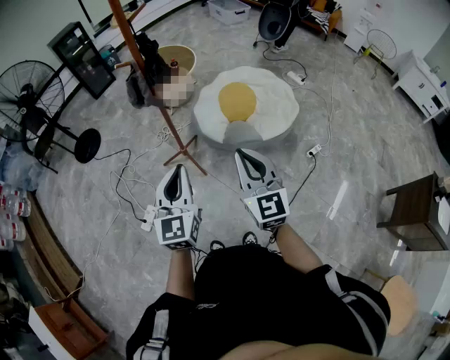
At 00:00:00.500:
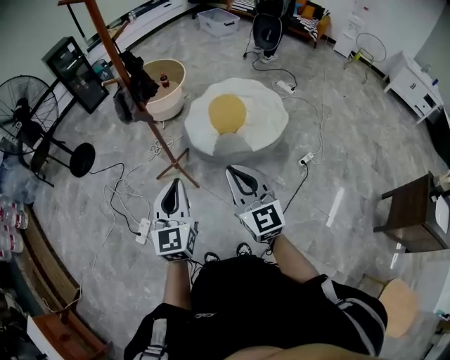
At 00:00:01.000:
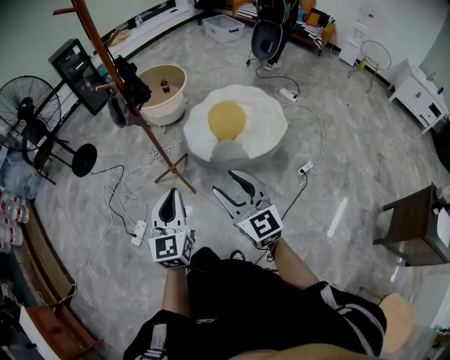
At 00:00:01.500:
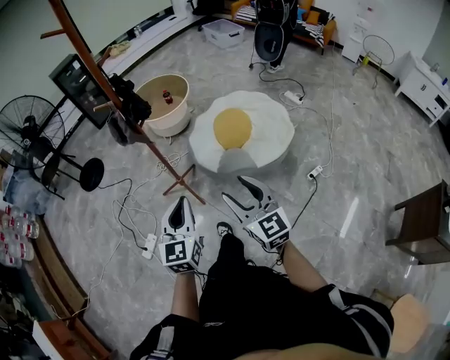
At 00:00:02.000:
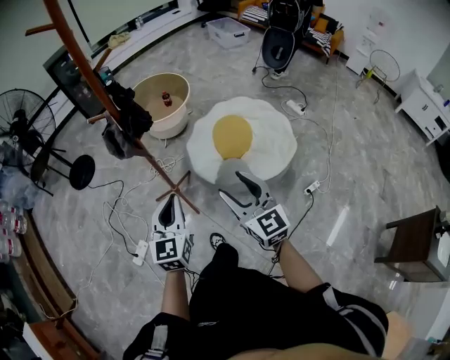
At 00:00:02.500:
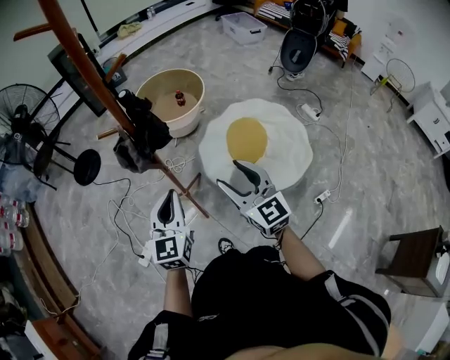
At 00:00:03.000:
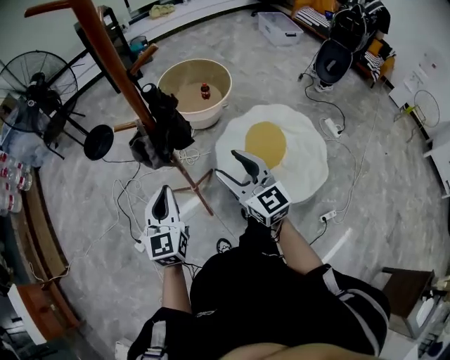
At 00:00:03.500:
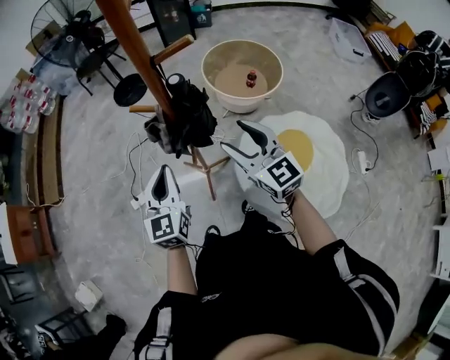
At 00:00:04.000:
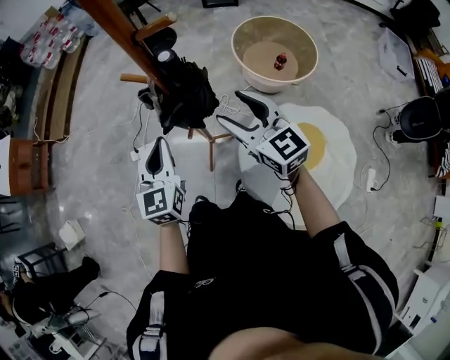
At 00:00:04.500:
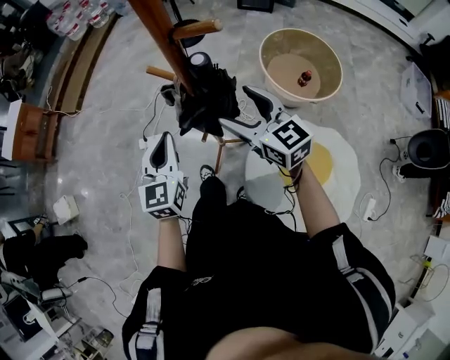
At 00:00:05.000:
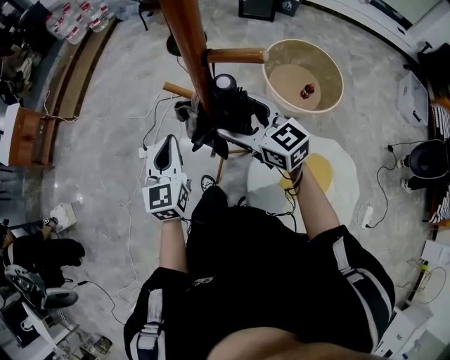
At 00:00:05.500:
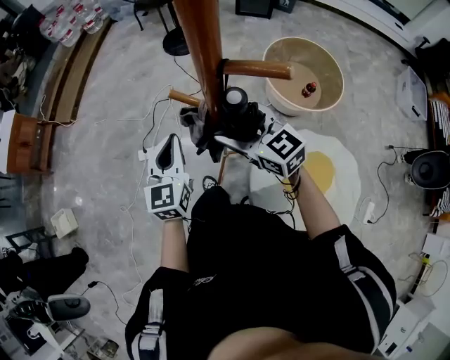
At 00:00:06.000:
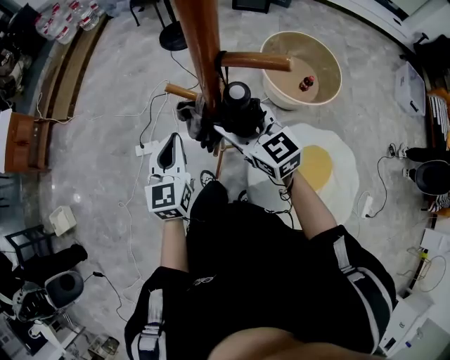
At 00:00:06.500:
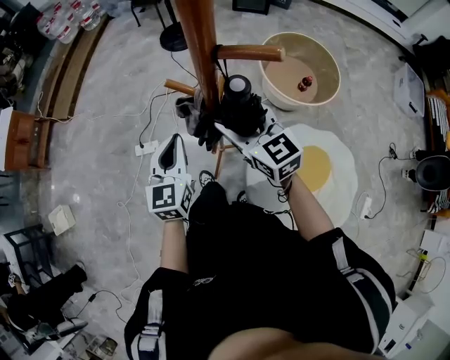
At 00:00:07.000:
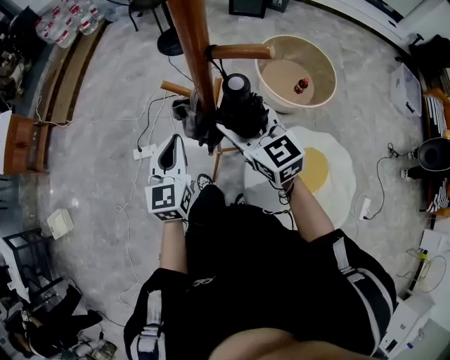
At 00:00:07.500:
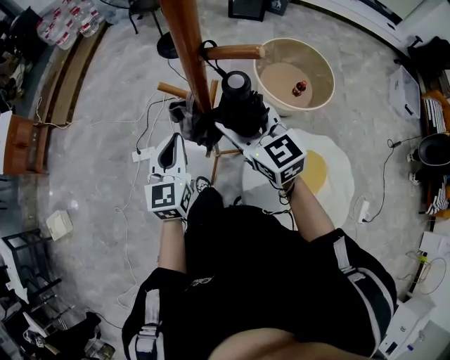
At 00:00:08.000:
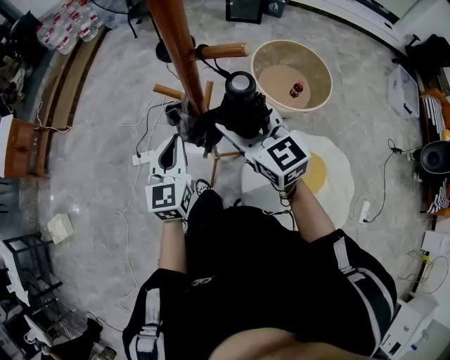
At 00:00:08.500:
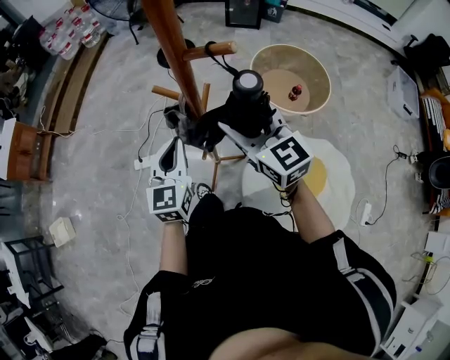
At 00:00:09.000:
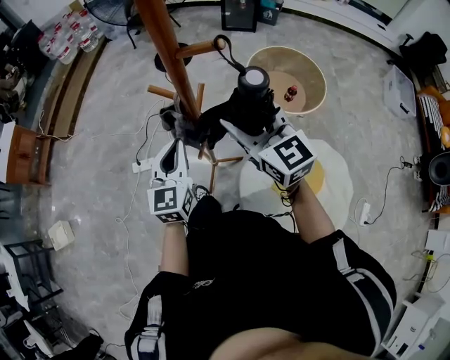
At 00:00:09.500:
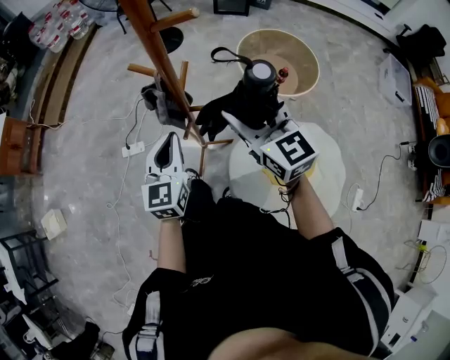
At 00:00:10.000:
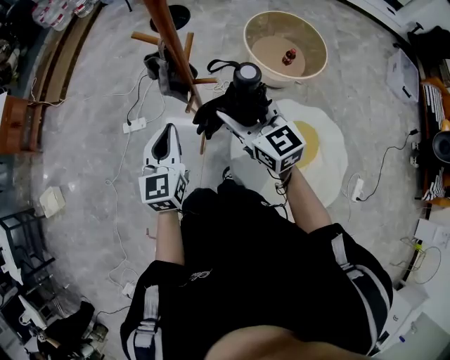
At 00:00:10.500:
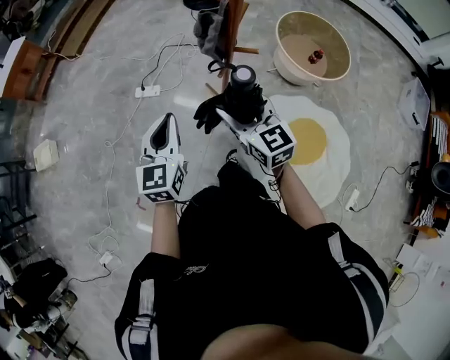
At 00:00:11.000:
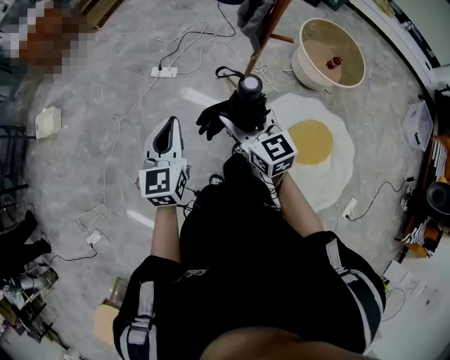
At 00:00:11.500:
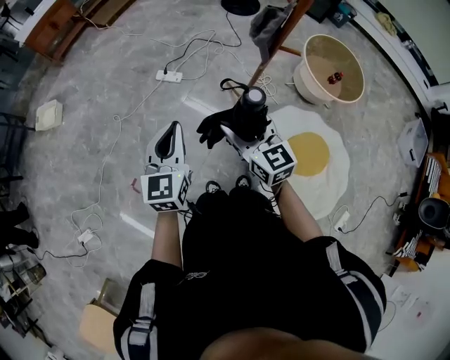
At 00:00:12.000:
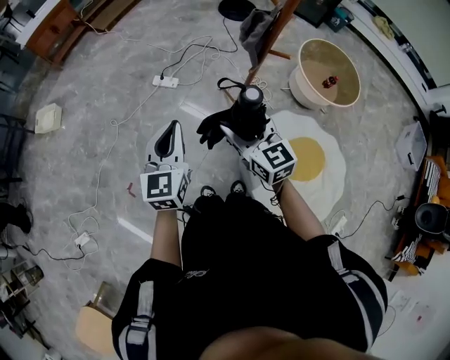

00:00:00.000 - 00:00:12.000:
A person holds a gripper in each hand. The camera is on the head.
00:00:00.000 - 00:00:02.000: Both grippers move forward and to the right, some 15 cm. The right gripper opens up.
00:00:02.000 - 00:00:04.000: The left gripper ends up approximately 25 cm from where it was, and swivels roughly 50 degrees; the right gripper ends up some 40 cm from where it was, and rotates roughly 60 degrees.
00:00:04.000 - 00:00:06.000: The left gripper heads forward, covering about 10 cm. The right gripper heads forward and to the left, covering approximately 15 cm.
00:00:06.000 - 00:00:08.000: The right gripper goes some 5 cm upward.
00:00:08.000 - 00:00:10.000: The left gripper is displaced backward by roughly 10 cm. The right gripper is displaced backward and downward by approximately 10 cm.
00:00:10.000 - 00:00:12.000: Both grippers travel together to the left and backward, about 25 cm.

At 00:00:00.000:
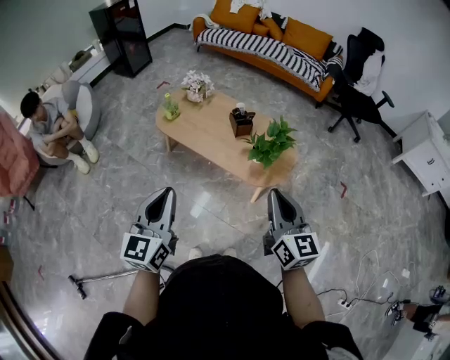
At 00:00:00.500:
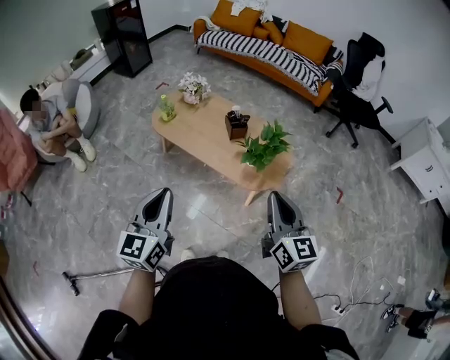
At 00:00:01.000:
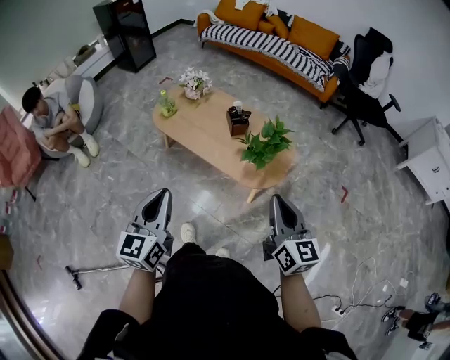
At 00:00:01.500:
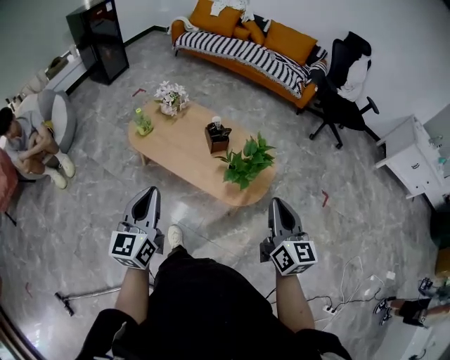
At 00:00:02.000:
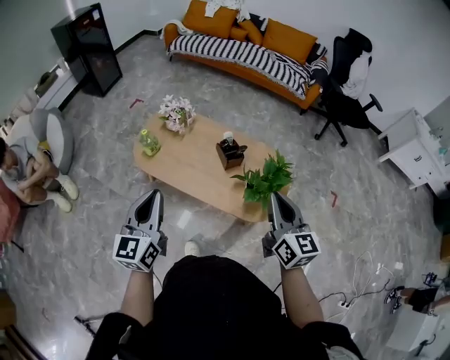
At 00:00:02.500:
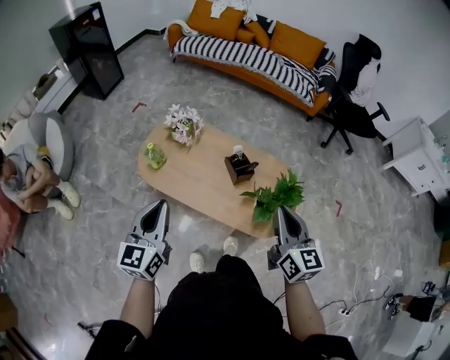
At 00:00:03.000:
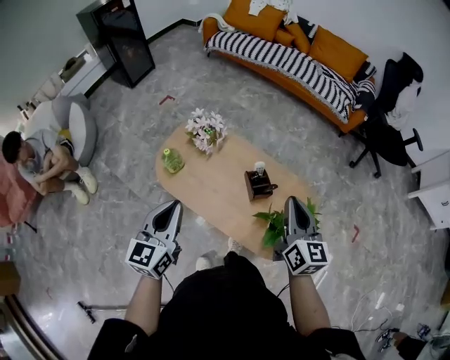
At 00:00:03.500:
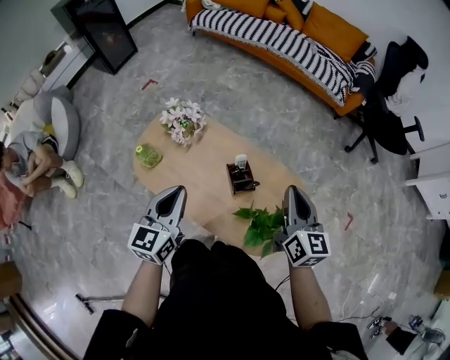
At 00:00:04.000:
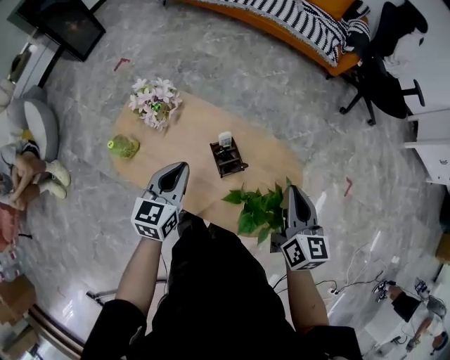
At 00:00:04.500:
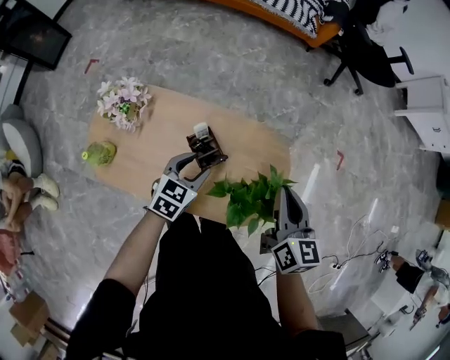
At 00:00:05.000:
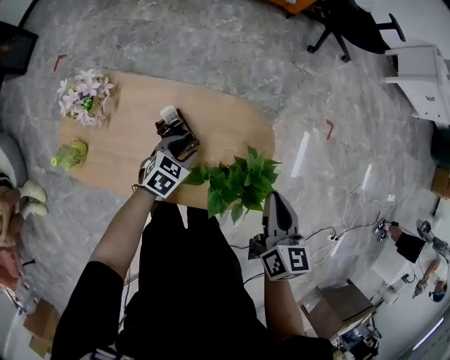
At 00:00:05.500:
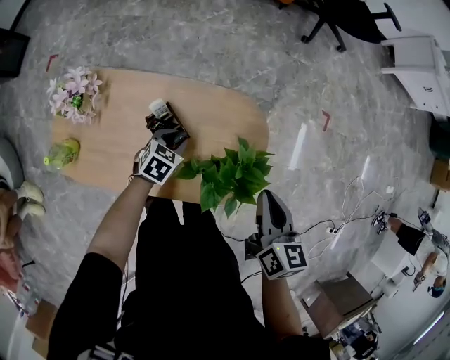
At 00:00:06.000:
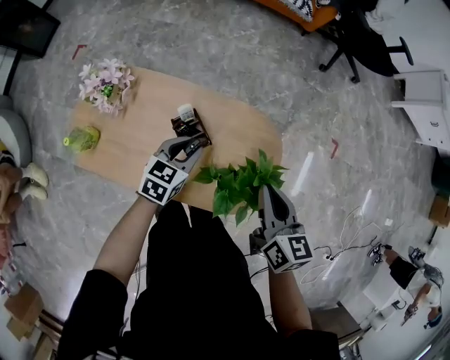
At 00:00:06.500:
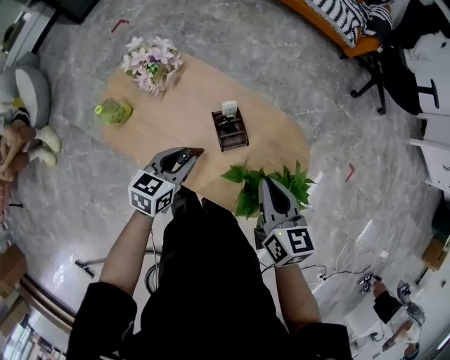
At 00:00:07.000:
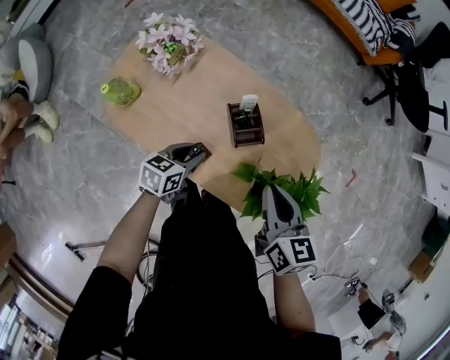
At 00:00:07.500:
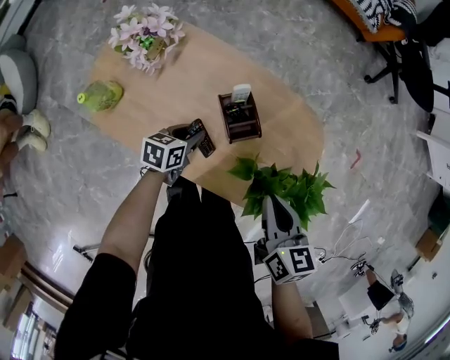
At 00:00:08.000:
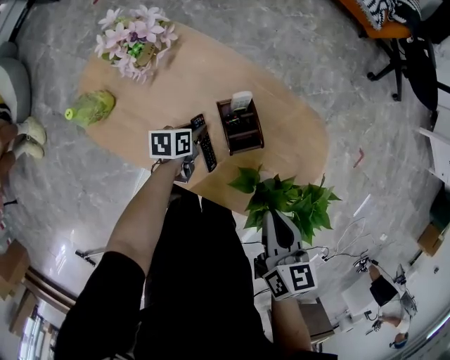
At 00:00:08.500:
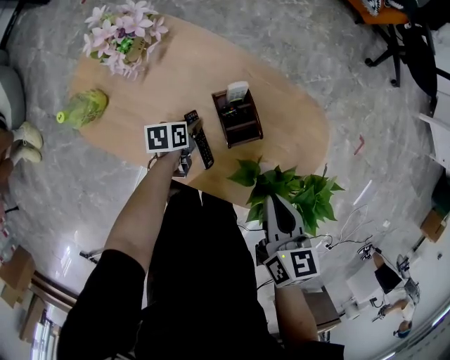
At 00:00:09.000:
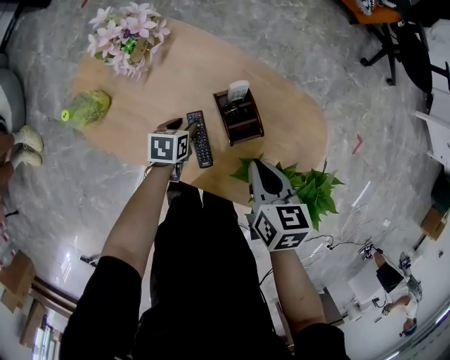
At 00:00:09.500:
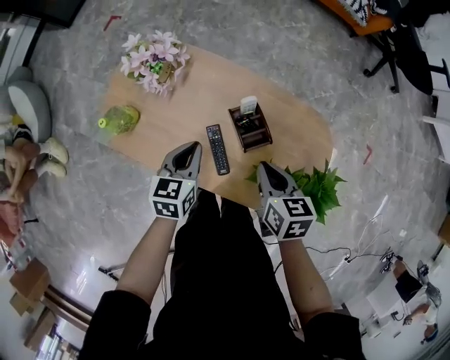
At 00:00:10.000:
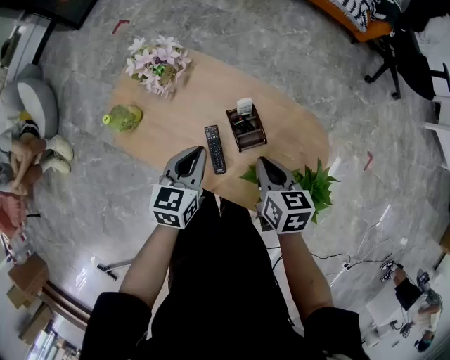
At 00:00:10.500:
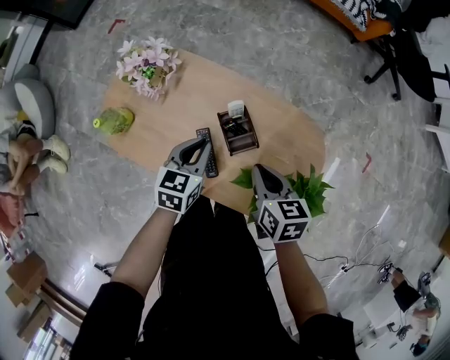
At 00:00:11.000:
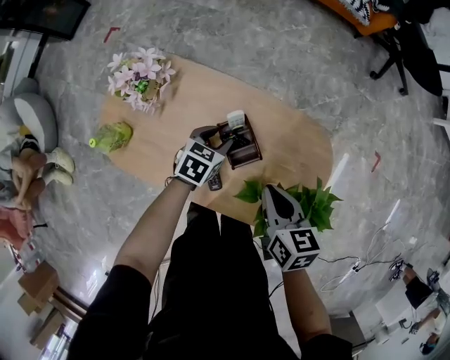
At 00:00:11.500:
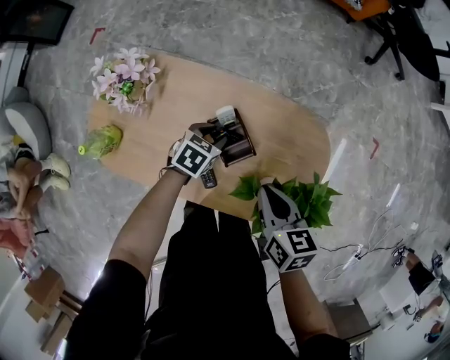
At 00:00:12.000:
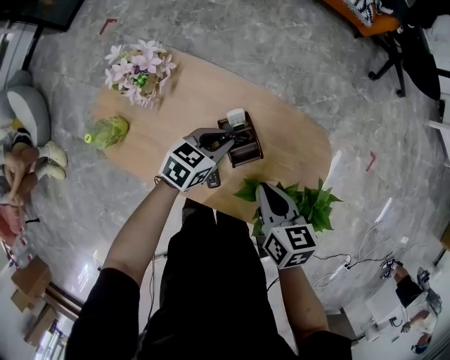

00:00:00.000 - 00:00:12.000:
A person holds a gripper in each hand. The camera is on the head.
00:00:00.000 - 00:00:02.000: Both grippers travel together forward, about 25 cm.
00:00:02.000 - 00:00:04.000: Both grippers move forward and downward, roughly 35 cm. The left gripper rotates some 20 degrees.
00:00:04.000 - 00:00:06.000: The left gripper turns by some 30 degrees, and opens up.
00:00:06.000 - 00:00:08.000: The right gripper shifts some 15 cm to the left and downward; the left gripper is displaced downward and to the left by some 25 cm, and rotates around the line of its fingers by roughly 50 degrees, counterclockwise from behind.
00:00:08.000 - 00:00:10.000: The left gripper moves upward, approximately 25 cm, swivels roughly 40 degrees, and closes up; the right gripper travels forward by roughly 5 cm.
00:00:10.000 - 00:00:12.000: The left gripper travels downward, forward and to the right by some 15 cm, rotates approximately 30 degrees, and opens, then closes once more.

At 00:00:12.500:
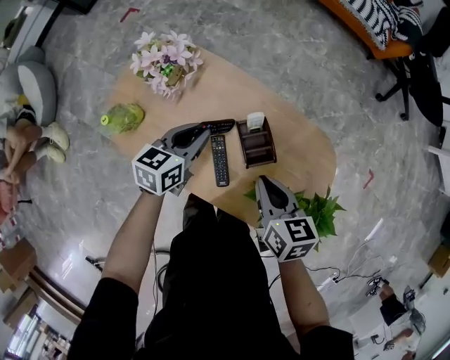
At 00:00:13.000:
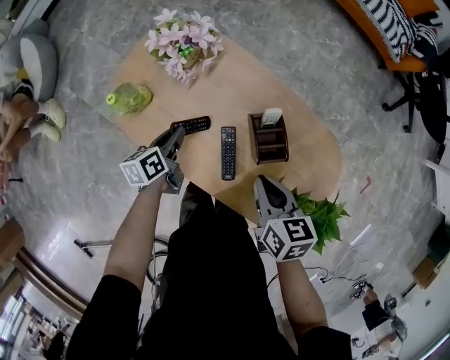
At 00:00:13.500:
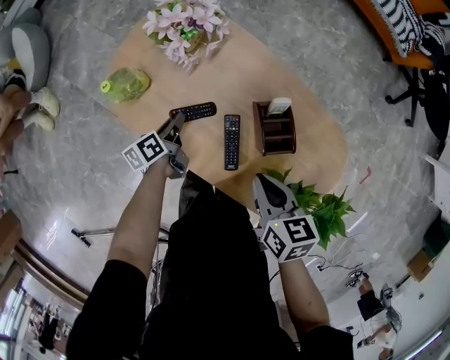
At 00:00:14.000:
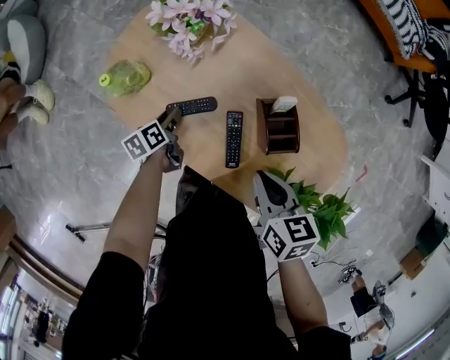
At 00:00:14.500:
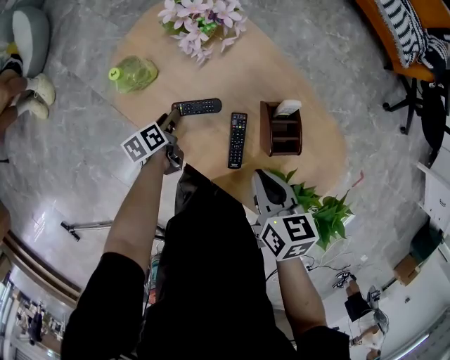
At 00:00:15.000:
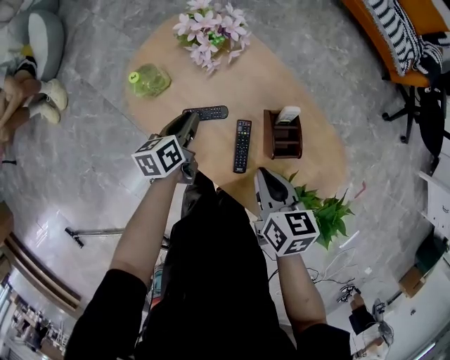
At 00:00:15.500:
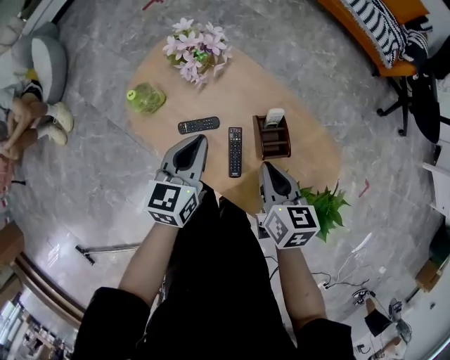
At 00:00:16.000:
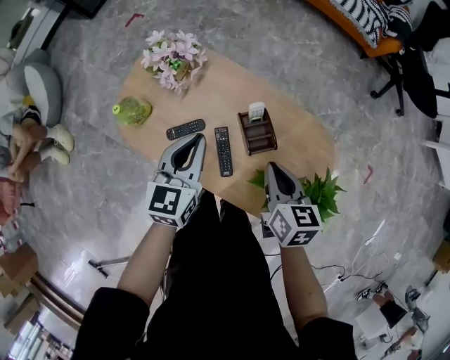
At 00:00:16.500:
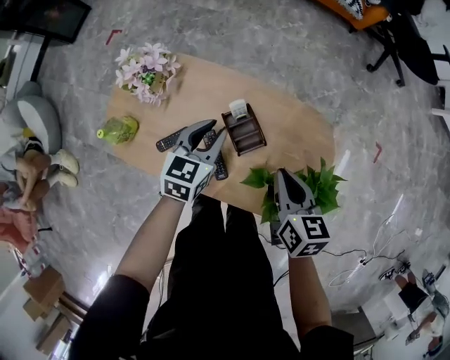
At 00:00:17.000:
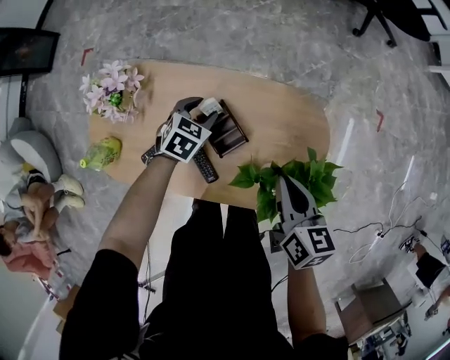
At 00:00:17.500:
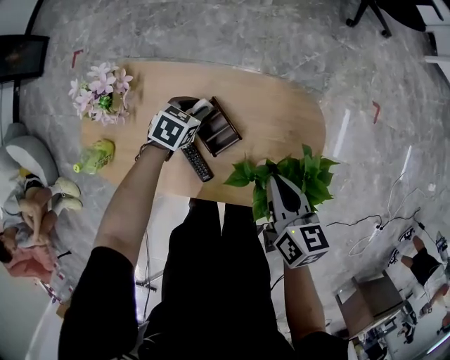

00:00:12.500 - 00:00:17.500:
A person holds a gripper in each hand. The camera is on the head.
00:00:12.500 - 00:00:15.000: The left gripper shifts roughly 15 cm to the left and downward, swivels about 40 degrees, and opens and closes again, while the right gripper shifts approximately 10 cm to the left.
00:00:15.000 - 00:00:17.500: The left gripper reaches about 20 cm upward, then returns, and rolls clockwise, seen from behind, by some 70 degrees. The right gripper ends up some 25 cm from where it was, and rotates some 40 degrees.
